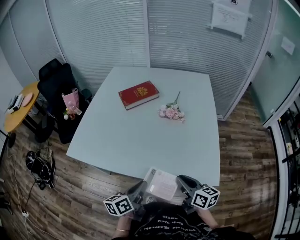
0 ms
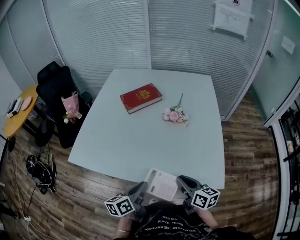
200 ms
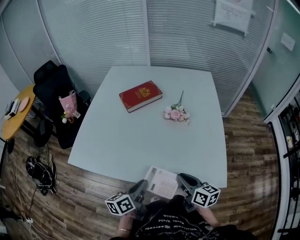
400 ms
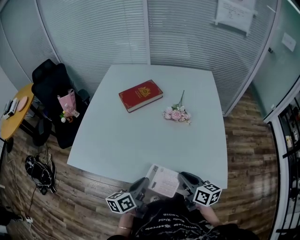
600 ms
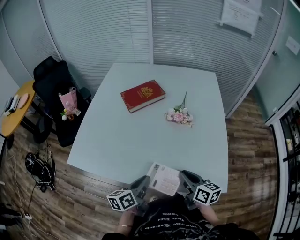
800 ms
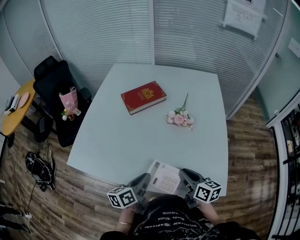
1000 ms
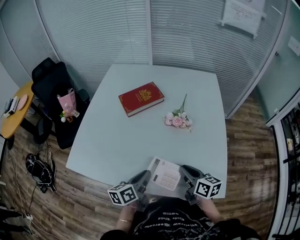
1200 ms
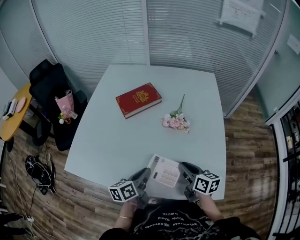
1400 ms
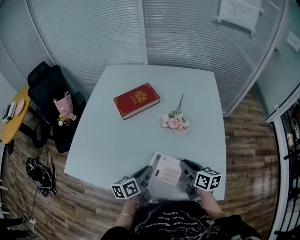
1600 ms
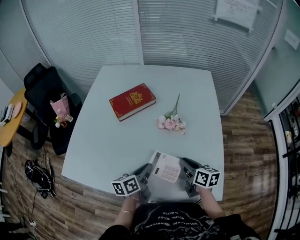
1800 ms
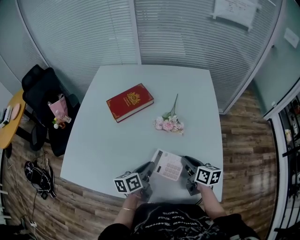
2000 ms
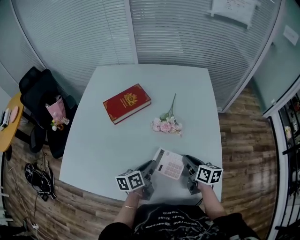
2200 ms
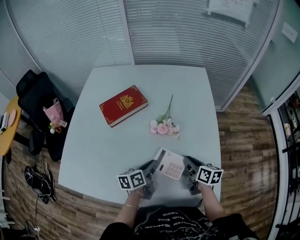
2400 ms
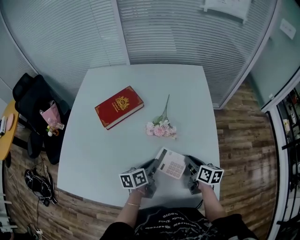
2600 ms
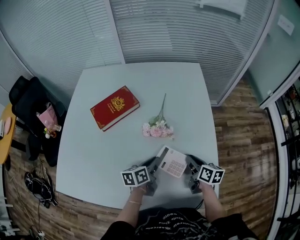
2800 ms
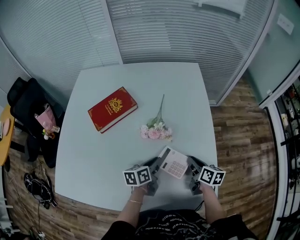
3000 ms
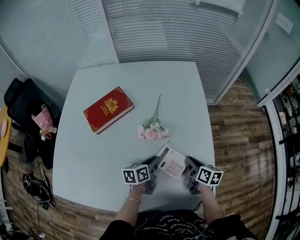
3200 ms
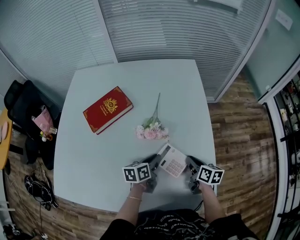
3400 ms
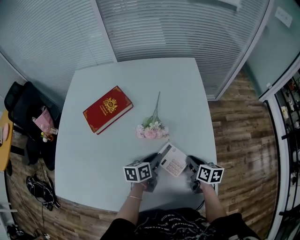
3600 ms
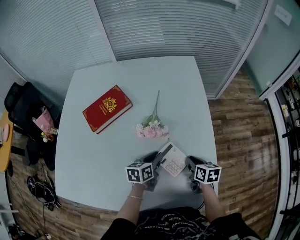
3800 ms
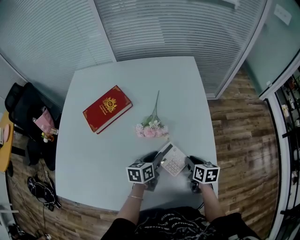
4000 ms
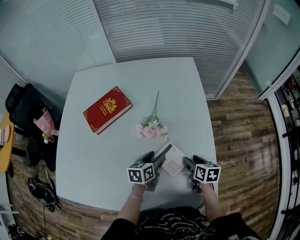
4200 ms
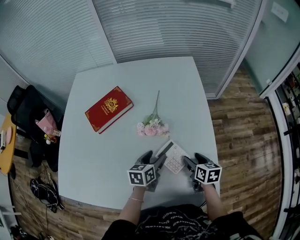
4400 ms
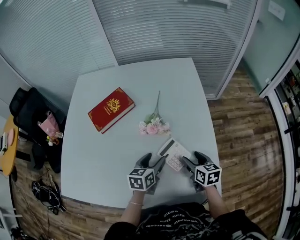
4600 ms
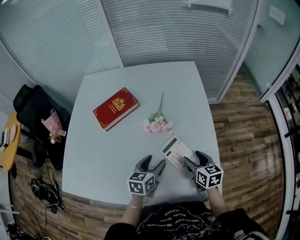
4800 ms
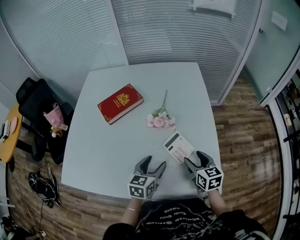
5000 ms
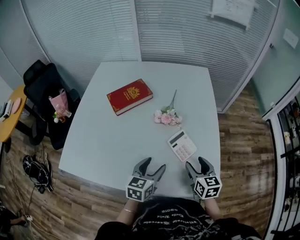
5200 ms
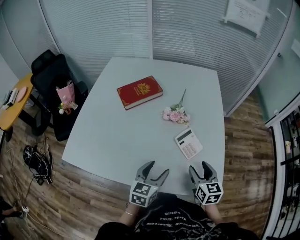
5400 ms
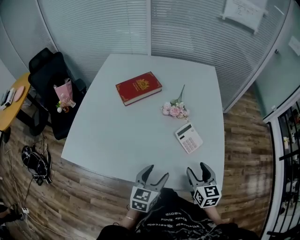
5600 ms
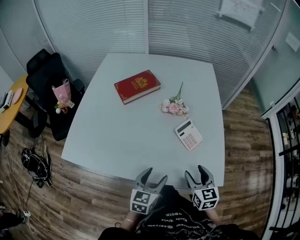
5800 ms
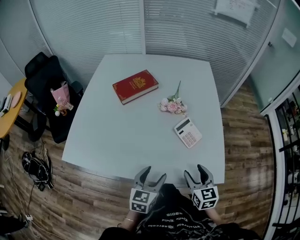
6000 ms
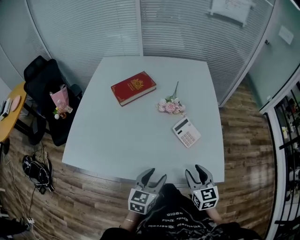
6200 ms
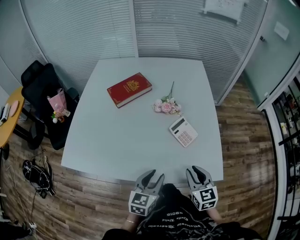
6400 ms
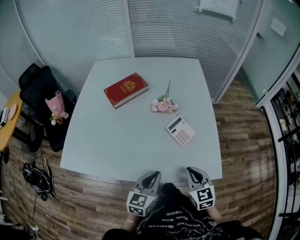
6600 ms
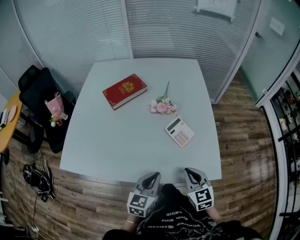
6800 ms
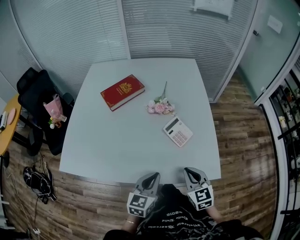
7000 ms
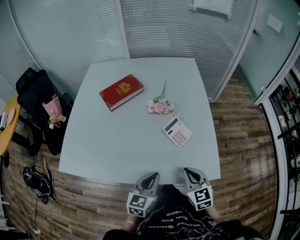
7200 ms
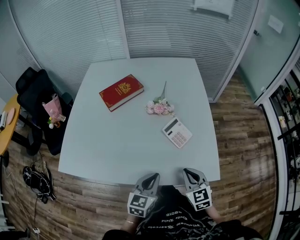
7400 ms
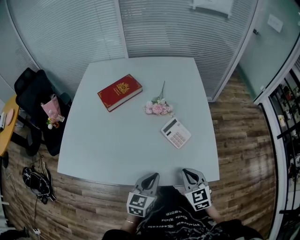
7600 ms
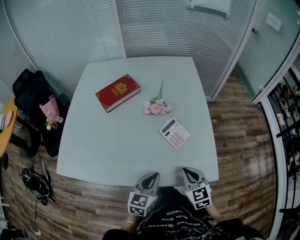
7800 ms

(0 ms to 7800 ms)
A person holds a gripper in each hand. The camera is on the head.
0 ms - 1600 ms: The grippers both shift forward by about 20 cm.
1600 ms - 3200 ms: The right gripper moves to the right, forward and downward, some 20 cm. Meanwhile the left gripper shifts about 20 cm forward, to the right and downward.
3200 ms - 4600 ms: The left gripper ends up approximately 5 cm from where it was, swivels roughly 20 degrees, and opens; the right gripper changes its angle by approximately 20 degrees, and opens.
4600 ms - 6200 ms: The grippers both shift backward by some 25 cm. The right gripper changes its angle by about 20 degrees.
6200 ms - 7800 ms: The right gripper closes; the left gripper closes up.

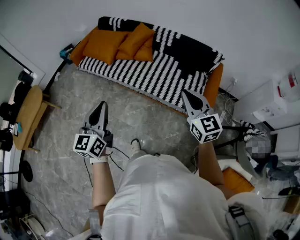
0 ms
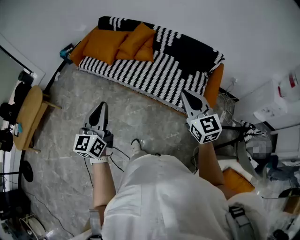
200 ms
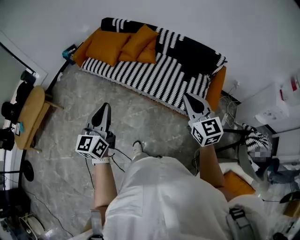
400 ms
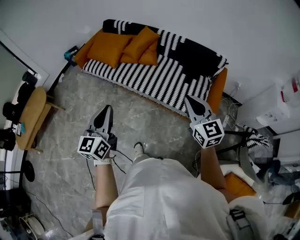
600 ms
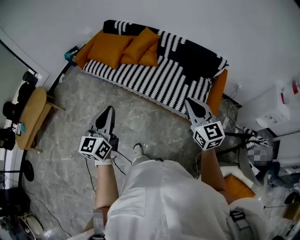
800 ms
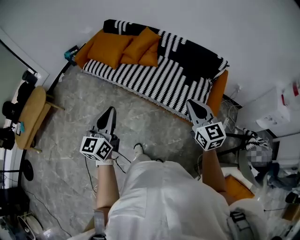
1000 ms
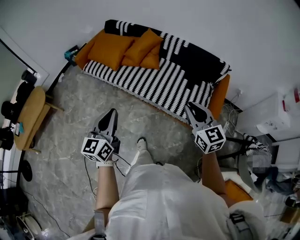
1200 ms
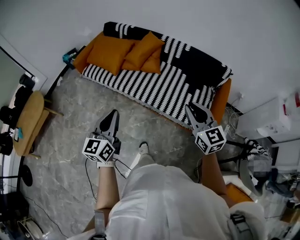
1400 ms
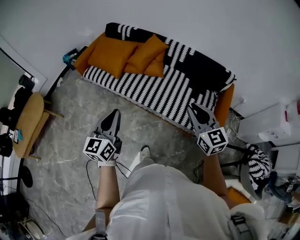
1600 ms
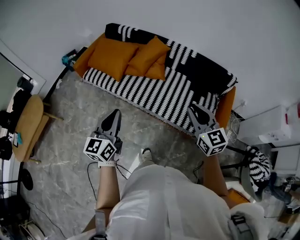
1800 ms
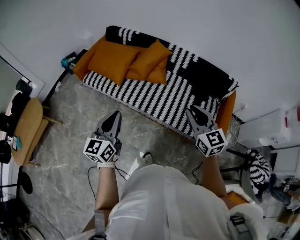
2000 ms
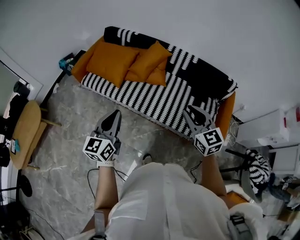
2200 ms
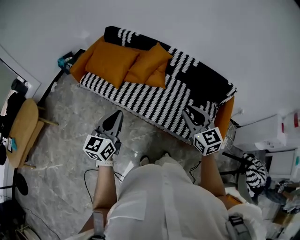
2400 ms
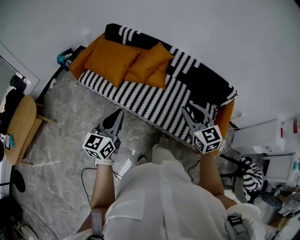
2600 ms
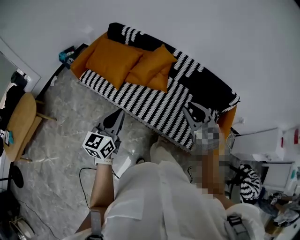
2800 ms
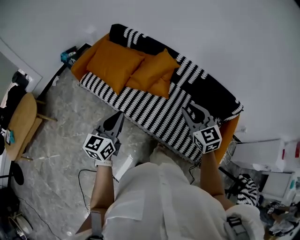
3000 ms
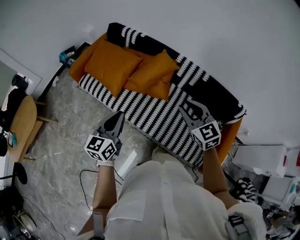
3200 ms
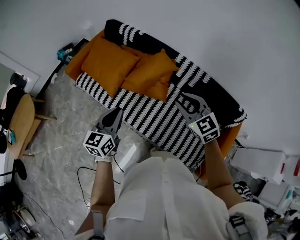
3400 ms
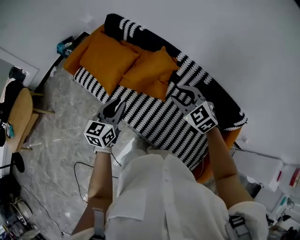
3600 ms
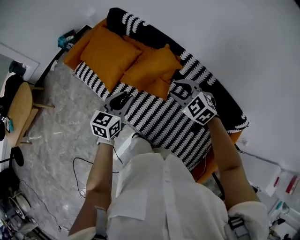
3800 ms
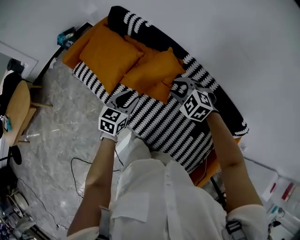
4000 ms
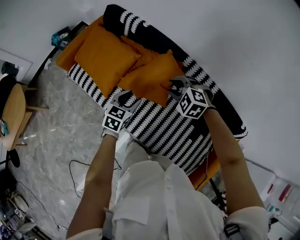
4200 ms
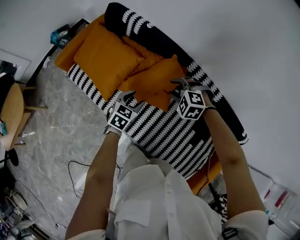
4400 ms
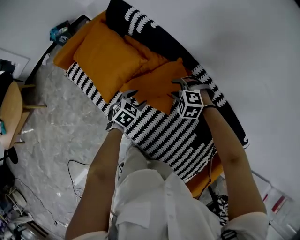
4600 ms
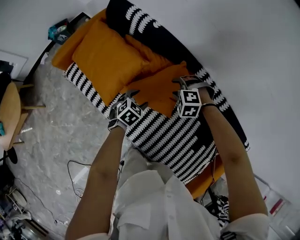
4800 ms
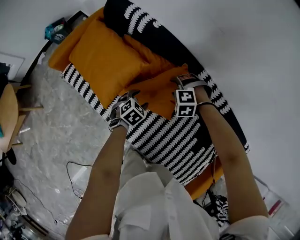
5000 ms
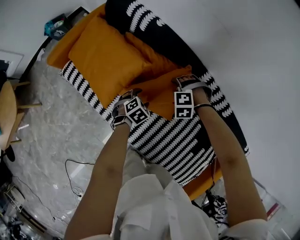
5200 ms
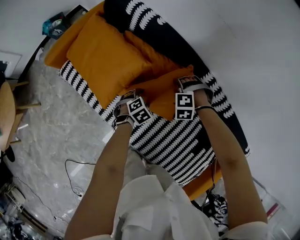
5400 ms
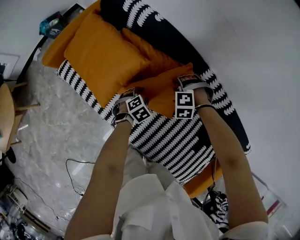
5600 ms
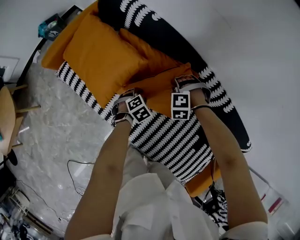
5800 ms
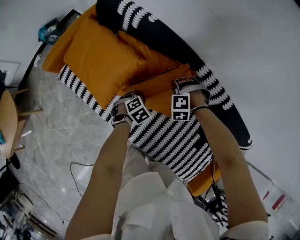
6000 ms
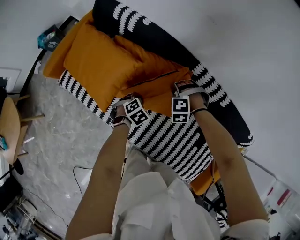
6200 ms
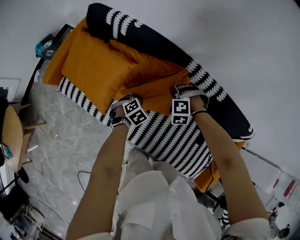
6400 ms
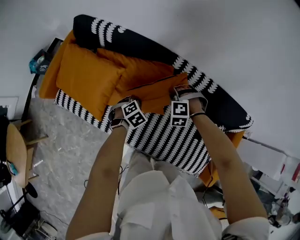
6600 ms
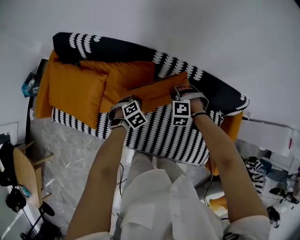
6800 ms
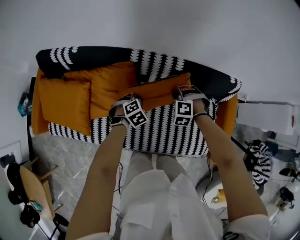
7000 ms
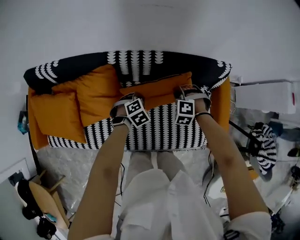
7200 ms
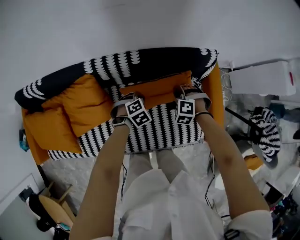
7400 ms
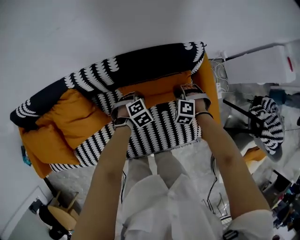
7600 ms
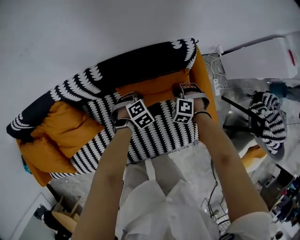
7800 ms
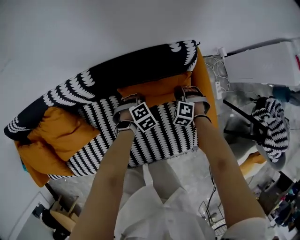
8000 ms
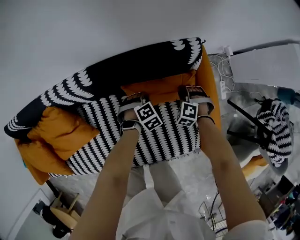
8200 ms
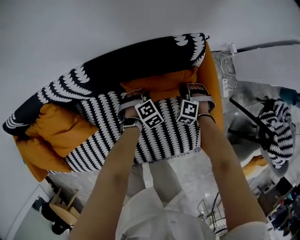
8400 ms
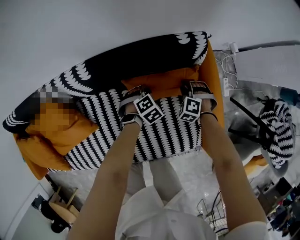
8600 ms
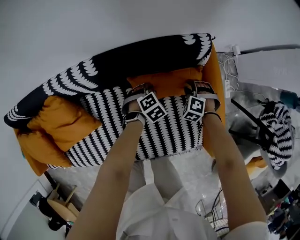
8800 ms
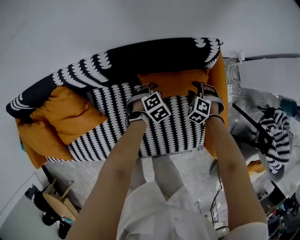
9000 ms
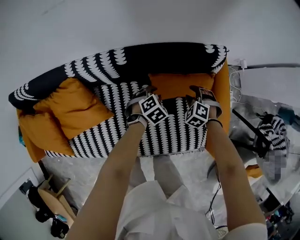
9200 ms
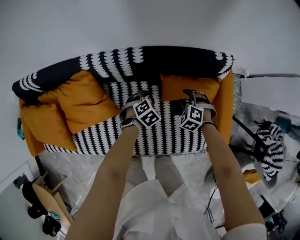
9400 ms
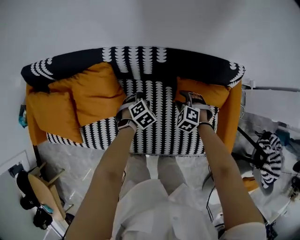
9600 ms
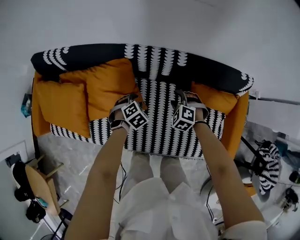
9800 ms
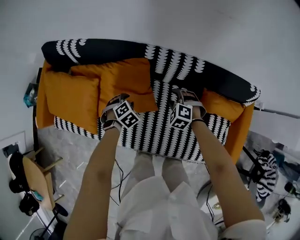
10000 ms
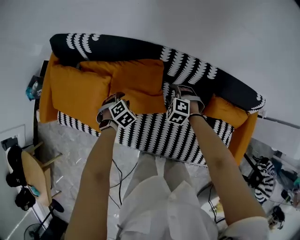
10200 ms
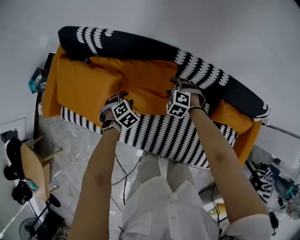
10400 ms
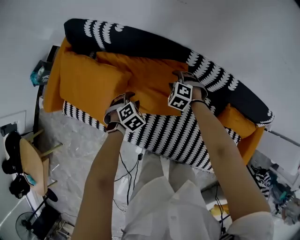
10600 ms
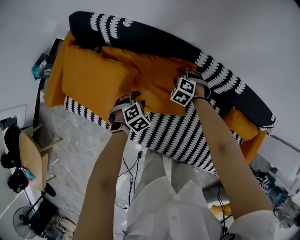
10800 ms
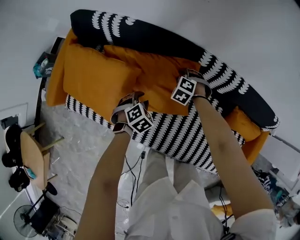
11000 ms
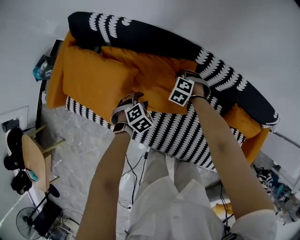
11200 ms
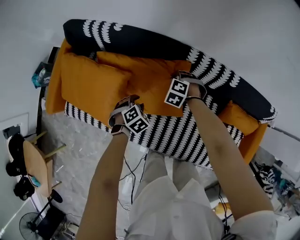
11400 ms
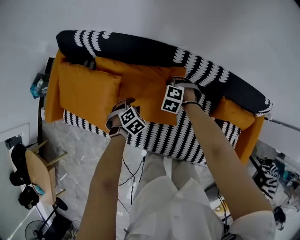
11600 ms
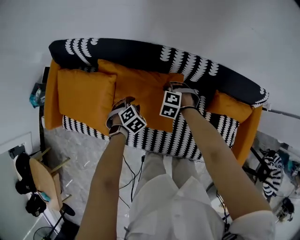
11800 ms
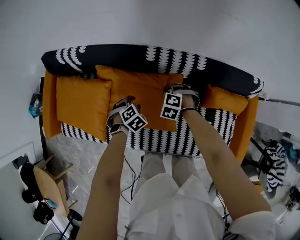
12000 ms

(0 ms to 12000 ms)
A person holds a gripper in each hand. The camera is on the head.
0 ms - 1600 ms: The grippers both shift forward by about 15 cm.
1600 ms - 3000 ms: The grippers both shift forward by roughly 25 cm.
3000 ms - 4400 ms: The left gripper travels forward, downward and to the right by roughly 40 cm, tilts its fingers about 30 degrees downward, and opens up. Meanwhile the right gripper shifts roughly 40 cm forward and downward, angles its fingers downward, by about 40 degrees, and opens.
4400 ms - 6000 ms: Both grippers move downward, about 15 cm. The right gripper rotates some 30 degrees, and closes its fingers. The left gripper rotates approximately 30 degrees, and closes up.
6000 ms - 7600 ms: The pair of grippers is taken about 50 cm. The left gripper rotates around the line of its fingers by some 60 degrees, clockwise from behind. The right gripper rolls clockwise, seen from behind, by about 60 degrees.
7600 ms - 9000 ms: The grippers both shift downward, to the right and forward by some 15 cm. The left gripper opens; the right gripper opens up.
9000 ms - 10400 ms: The two grippers travel together, roughly 60 cm. The left gripper swivels about 30 degrees, while the right gripper rotates about 40 degrees.
10400 ms - 12000 ms: The right gripper ends up some 10 cm from where it was, and closes. Meanwhile the left gripper shifts by some 10 cm.

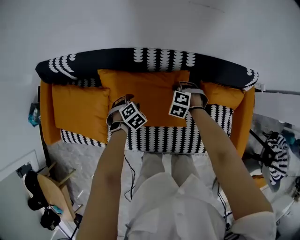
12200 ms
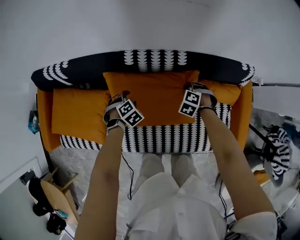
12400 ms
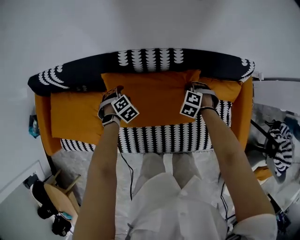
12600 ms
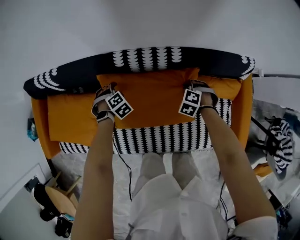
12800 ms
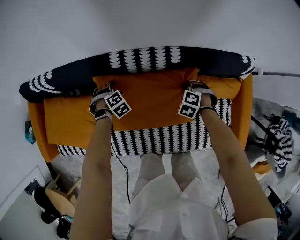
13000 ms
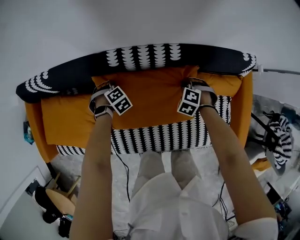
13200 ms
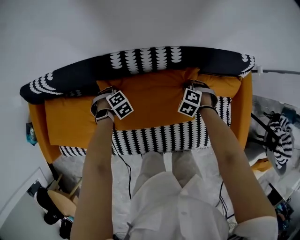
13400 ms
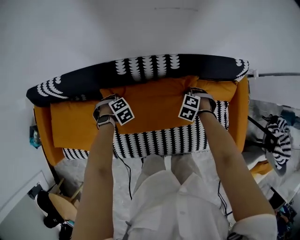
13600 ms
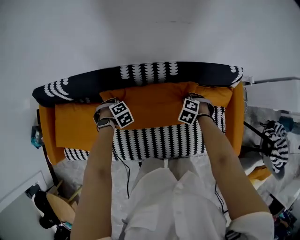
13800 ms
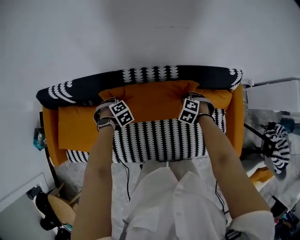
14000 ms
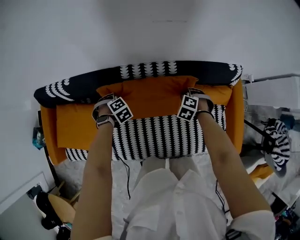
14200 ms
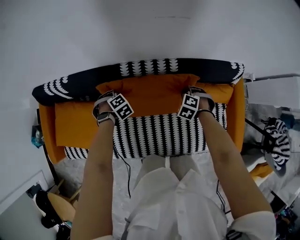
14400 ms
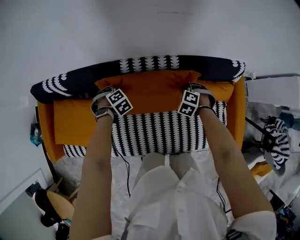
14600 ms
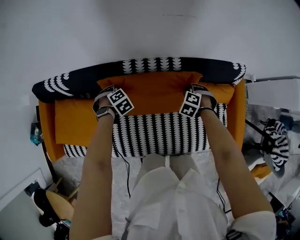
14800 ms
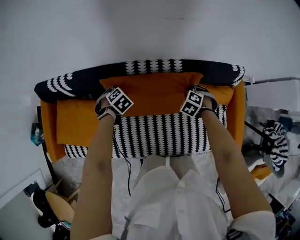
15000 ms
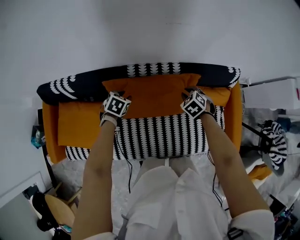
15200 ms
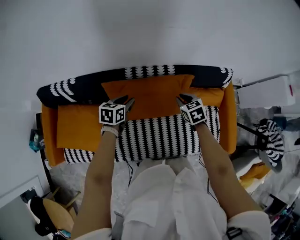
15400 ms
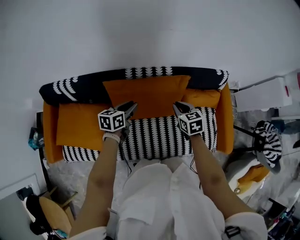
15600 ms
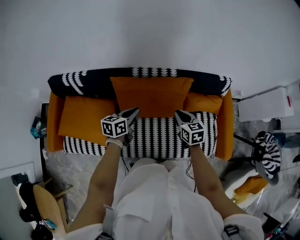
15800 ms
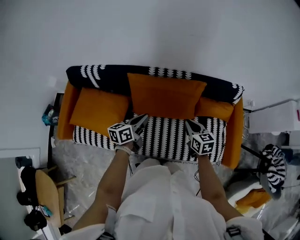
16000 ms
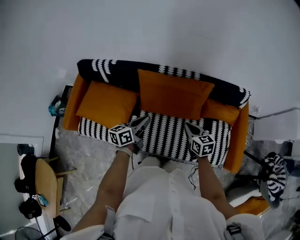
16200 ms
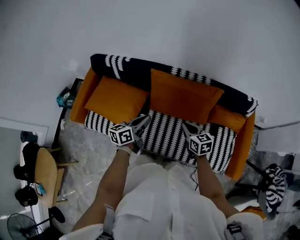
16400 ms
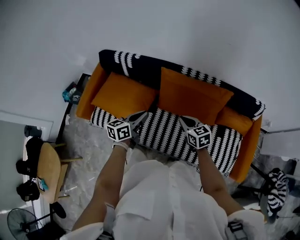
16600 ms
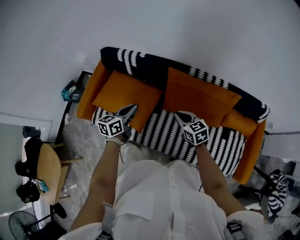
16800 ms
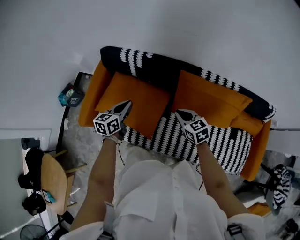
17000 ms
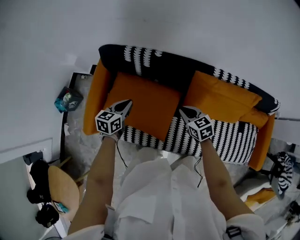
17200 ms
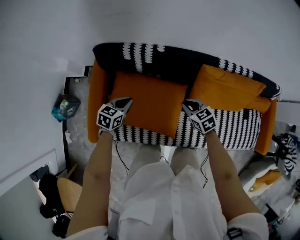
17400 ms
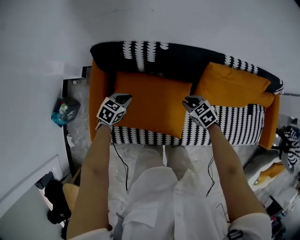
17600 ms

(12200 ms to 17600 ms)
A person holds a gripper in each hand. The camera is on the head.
12200 ms - 13600 ms: The left gripper turns by roughly 20 degrees, and closes up; the right gripper moves roughly 10 cm.
13600 ms - 15000 ms: Both grippers travel together upward, approximately 5 cm. The left gripper turns by some 20 degrees, and opens.
15000 ms - 16200 ms: The right gripper ends up some 30 cm from where it was, and tips its fingers upward by some 40 degrees, while the left gripper ends up approximately 30 cm from where it was, tips its fingers upward by about 60 degrees, and closes.
16200 ms - 17600 ms: The two grippers travel together, to the left and forward, about 50 cm. The left gripper angles its fingers downward, by approximately 40 degrees. The right gripper rotates some 40 degrees.
